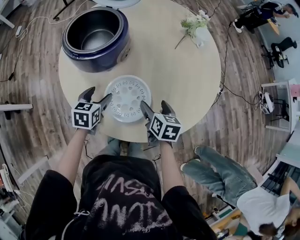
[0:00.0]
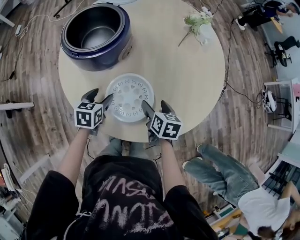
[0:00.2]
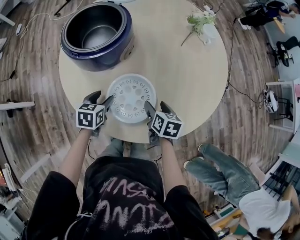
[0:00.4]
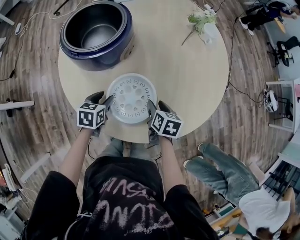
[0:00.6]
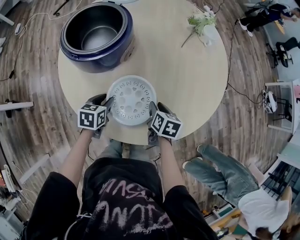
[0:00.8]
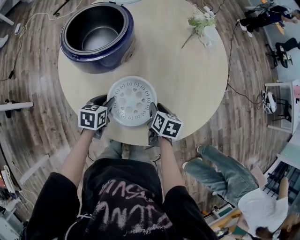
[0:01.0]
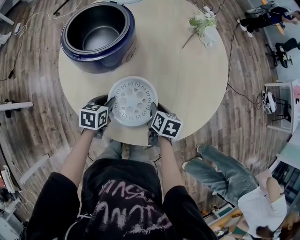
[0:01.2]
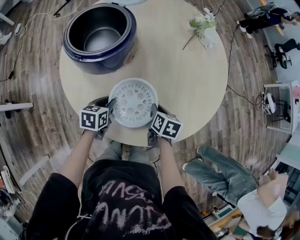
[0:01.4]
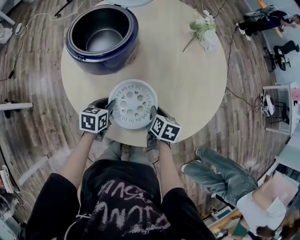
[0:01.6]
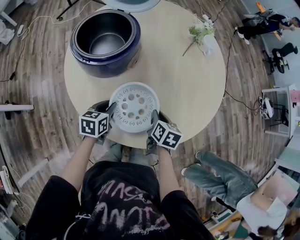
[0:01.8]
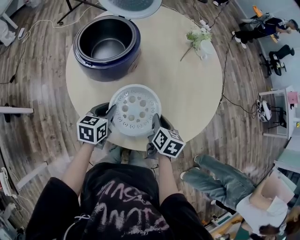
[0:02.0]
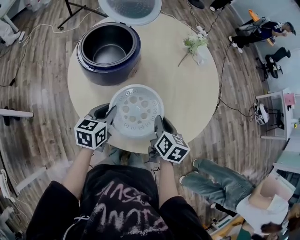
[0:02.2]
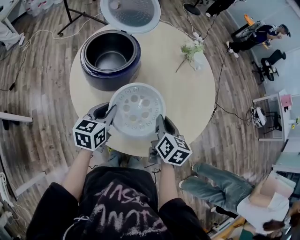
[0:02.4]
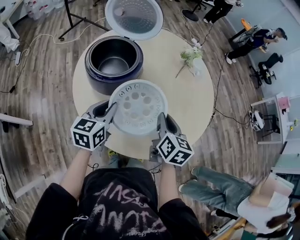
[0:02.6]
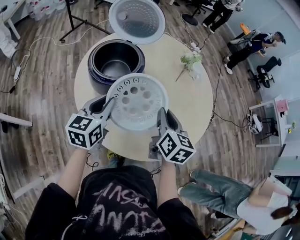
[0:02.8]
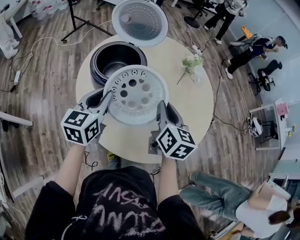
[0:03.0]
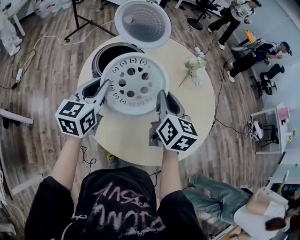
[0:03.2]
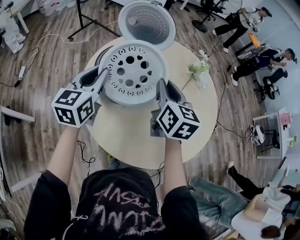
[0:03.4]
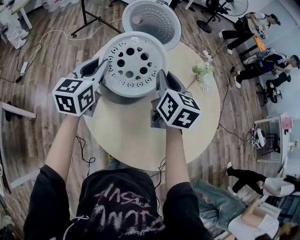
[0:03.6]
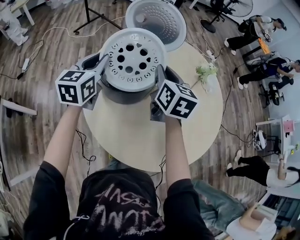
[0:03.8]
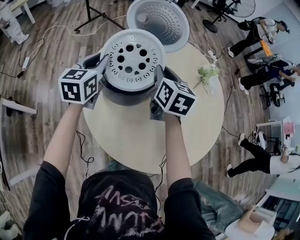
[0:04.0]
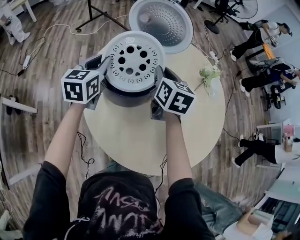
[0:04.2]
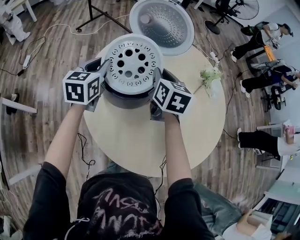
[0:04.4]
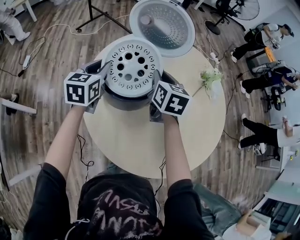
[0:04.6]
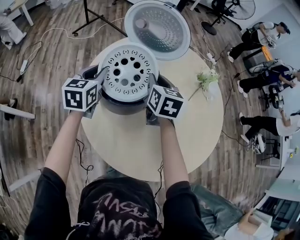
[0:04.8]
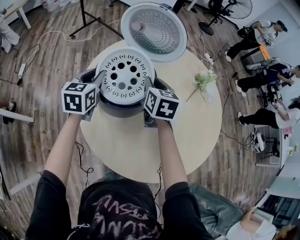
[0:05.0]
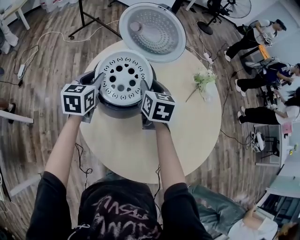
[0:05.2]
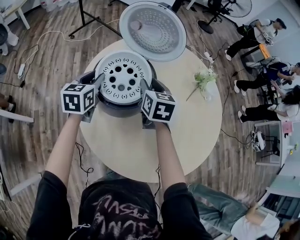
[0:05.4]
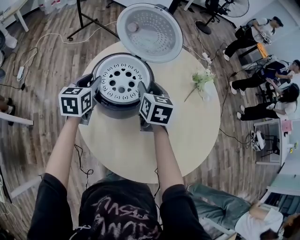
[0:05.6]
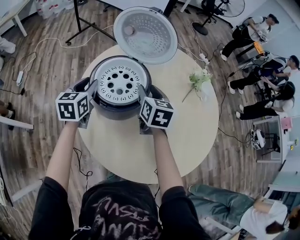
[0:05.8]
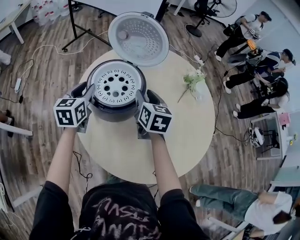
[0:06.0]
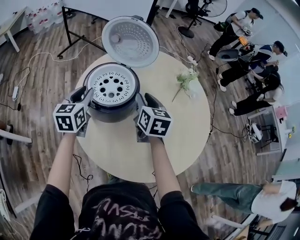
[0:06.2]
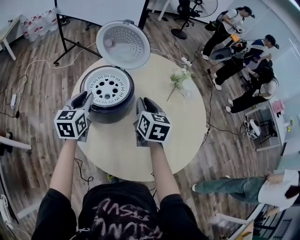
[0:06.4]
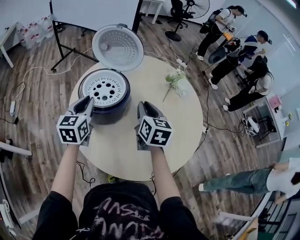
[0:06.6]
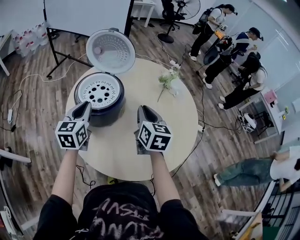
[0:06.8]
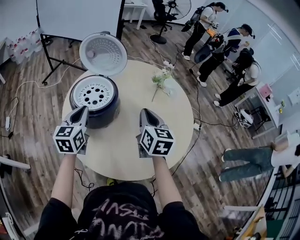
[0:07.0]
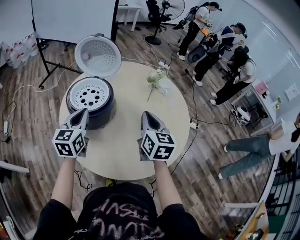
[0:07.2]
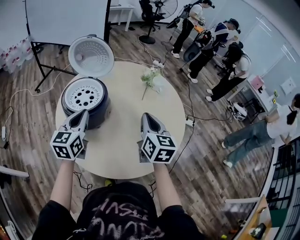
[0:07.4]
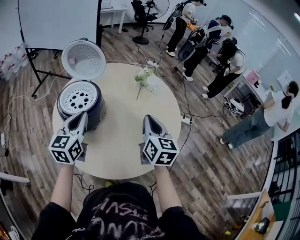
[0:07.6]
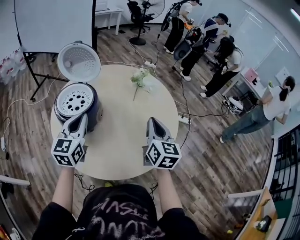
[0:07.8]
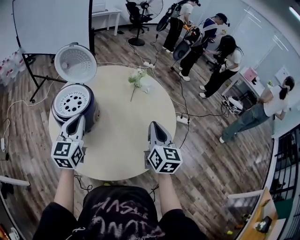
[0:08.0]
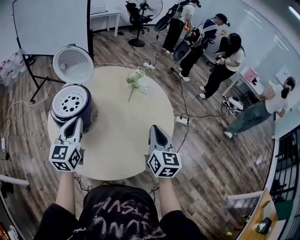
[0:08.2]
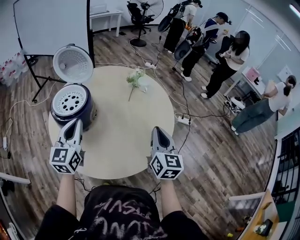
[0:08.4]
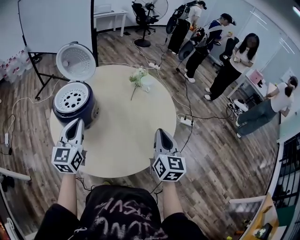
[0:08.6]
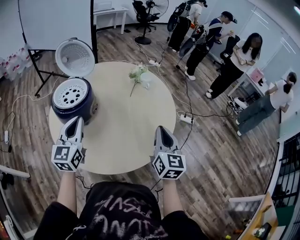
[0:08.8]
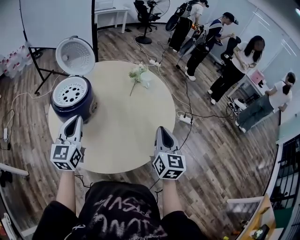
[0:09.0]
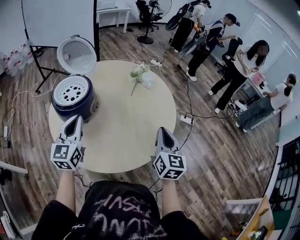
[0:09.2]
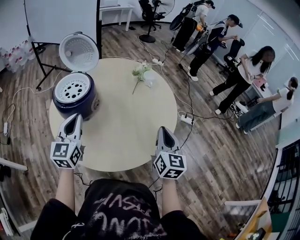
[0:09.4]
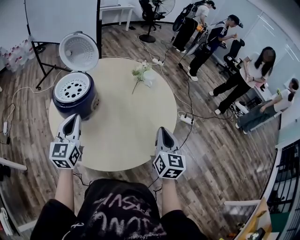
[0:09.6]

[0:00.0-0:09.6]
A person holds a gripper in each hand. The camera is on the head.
0:00.0 to 0:01.6: Both grippers travel together downward, some 5 cm. The right gripper closes its fingers; the left gripper closes up.
0:01.6 to 0:03.2: Both grippers move upward, roughly 30 cm. The left gripper points its fingers roughly 30 degrees further upward. The right gripper points its fingers roughly 40 degrees further upward.
0:03.2 to 0:04.8: Both grippers move forward, downward and to the left, about 20 cm.
0:04.8 to 0:06.4: The left gripper shifts roughly 5 cm backward. The right gripper travels backward and to the right by approximately 10 cm.
0:06.4 to 0:08.0: The right gripper moves to the right and backward, approximately 30 cm, and swivels about 30 degrees. Meanwhile the left gripper is displaced to the right, backward and upward by about 20 cm, and turns by approximately 20 degrees.
0:08.0 to 0:09.6: The right gripper moves to the right, some 5 cm. Meanwhile the left gripper shifts by about 5 cm.

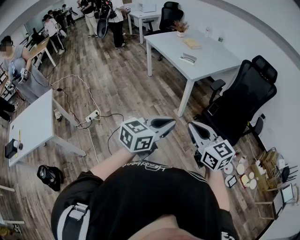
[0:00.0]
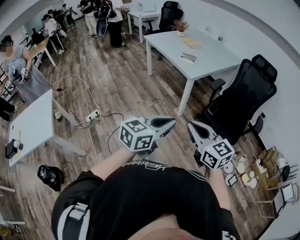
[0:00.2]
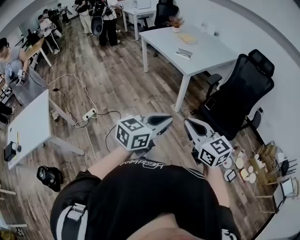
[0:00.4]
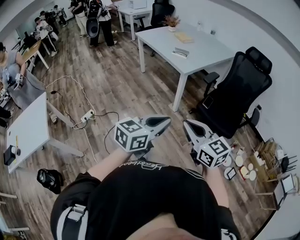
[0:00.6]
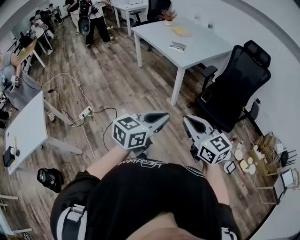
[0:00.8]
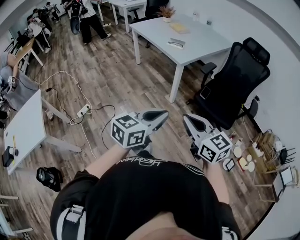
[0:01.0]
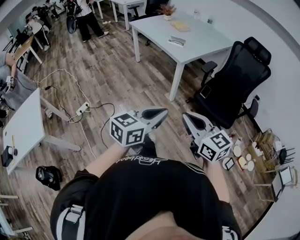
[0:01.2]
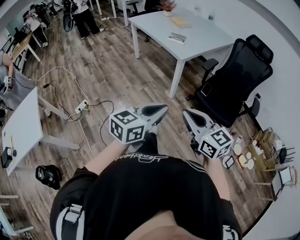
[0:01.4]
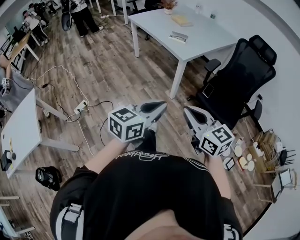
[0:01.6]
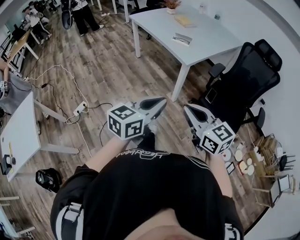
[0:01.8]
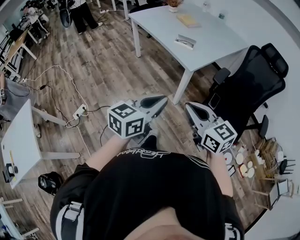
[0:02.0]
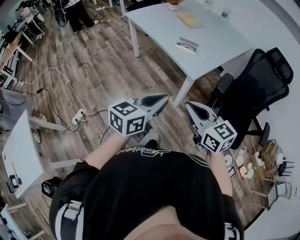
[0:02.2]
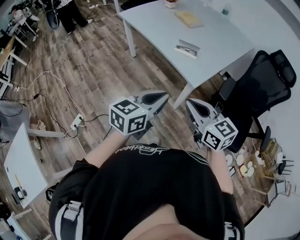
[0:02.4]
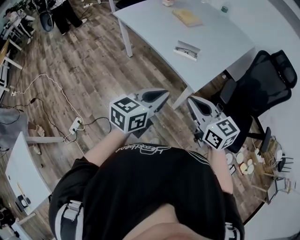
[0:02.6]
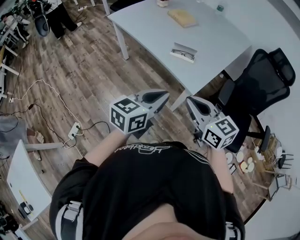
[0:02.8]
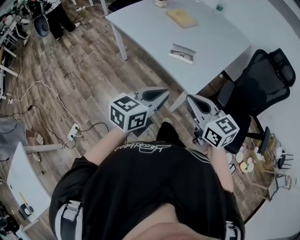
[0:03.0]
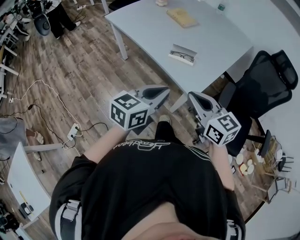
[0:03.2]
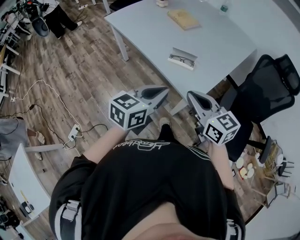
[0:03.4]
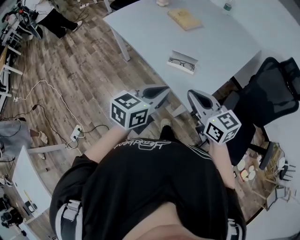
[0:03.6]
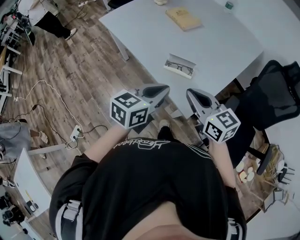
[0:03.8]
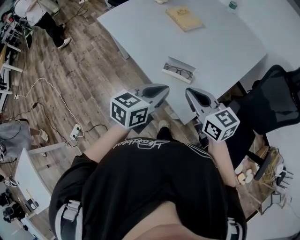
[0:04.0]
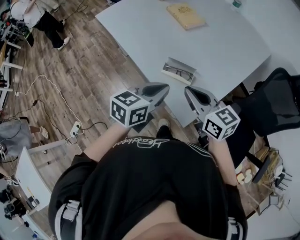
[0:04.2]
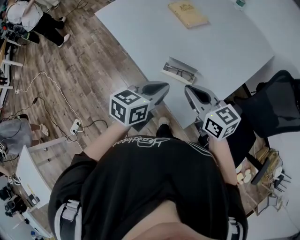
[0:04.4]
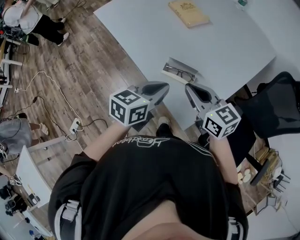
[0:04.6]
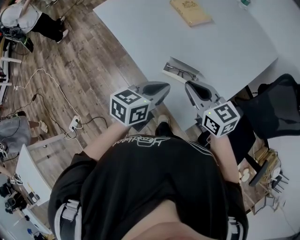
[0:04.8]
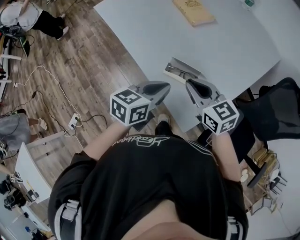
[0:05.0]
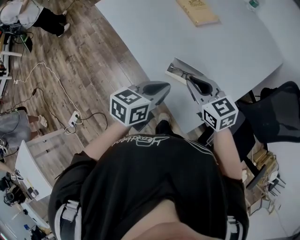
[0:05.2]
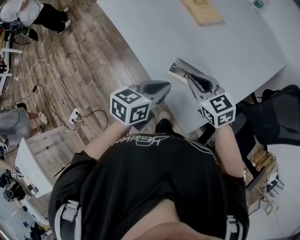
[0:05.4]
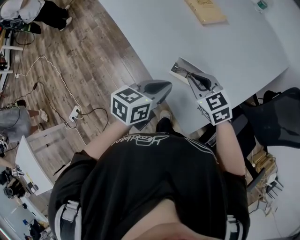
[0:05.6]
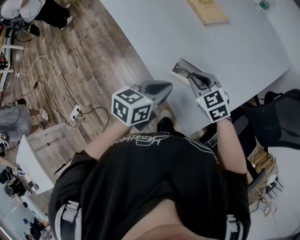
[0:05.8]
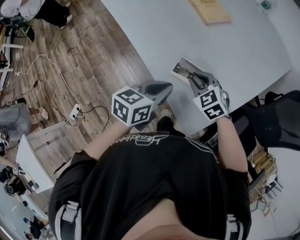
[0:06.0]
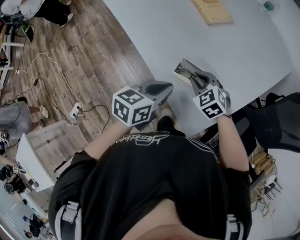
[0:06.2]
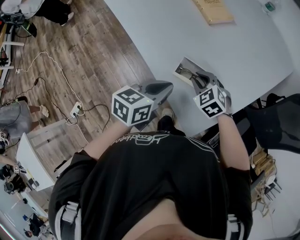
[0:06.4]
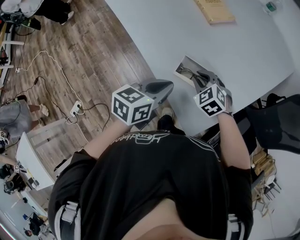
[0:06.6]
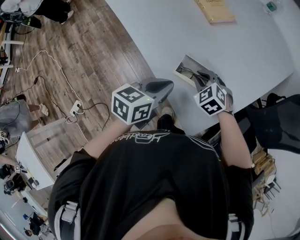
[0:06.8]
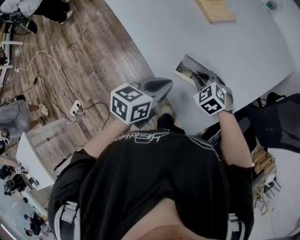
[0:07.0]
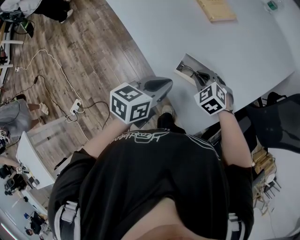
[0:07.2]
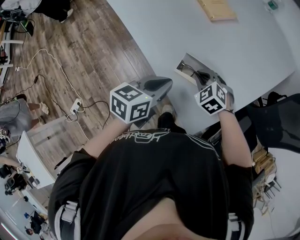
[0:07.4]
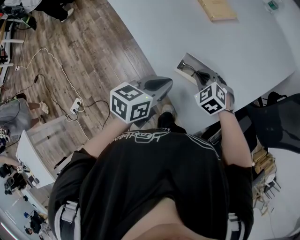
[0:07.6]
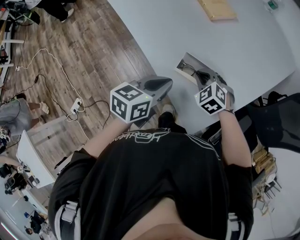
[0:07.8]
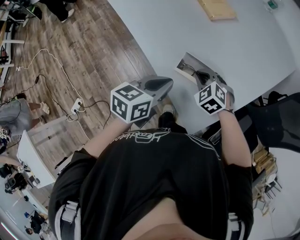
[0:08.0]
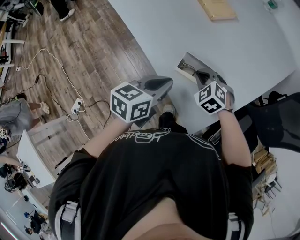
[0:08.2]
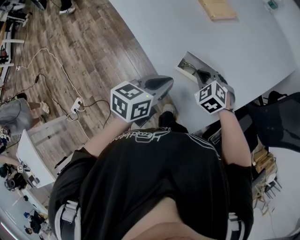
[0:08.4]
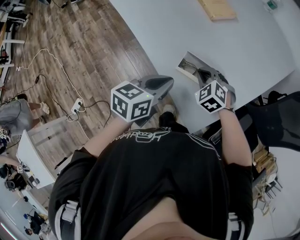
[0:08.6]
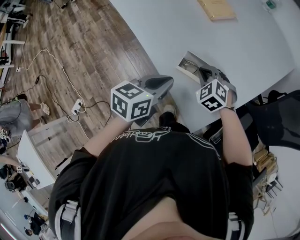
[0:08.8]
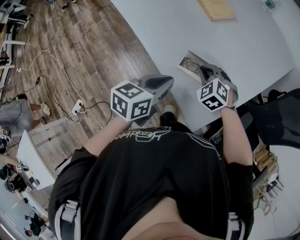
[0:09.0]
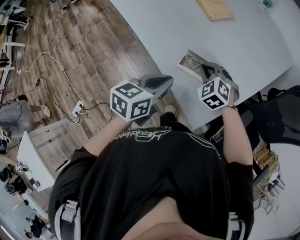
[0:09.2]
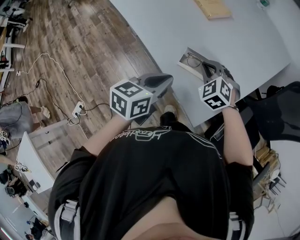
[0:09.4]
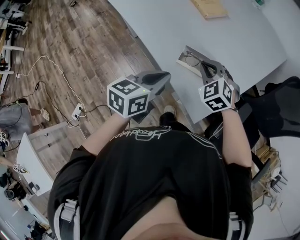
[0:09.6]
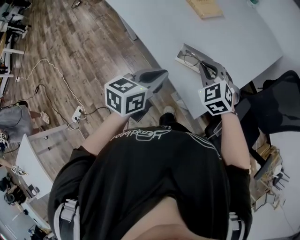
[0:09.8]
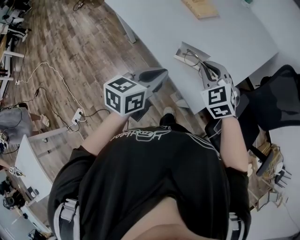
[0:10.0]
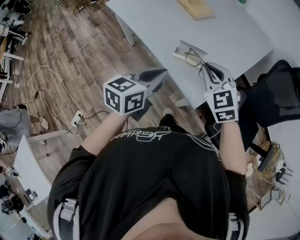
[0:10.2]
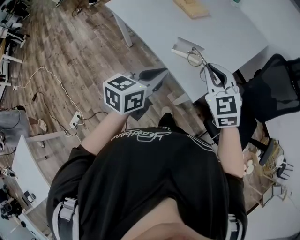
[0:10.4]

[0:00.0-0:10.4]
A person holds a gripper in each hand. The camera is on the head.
0:00.0 to 0:01.4: There are only small adjustments of the grippers.
0:01.4 to 0:03.0: Both grippers are carried forward, roughly 50 cm.
0:03.0 to 0:04.4: The two grippers go approximately 25 cm forward.
0:04.4 to 0:06.0: The left gripper is displaced downward by roughly 5 cm, while the right gripper shifts roughly 20 cm downward and forward, and tips its fingers downward by about 30 degrees.
0:06.0 to 0:07.4: The grippers move only a little.
0:07.4 to 0:09.0: The grippers stay close to where they were, moving slightly.
0:09.0 to 0:10.4: The left gripper shifts some 20 cm backward and upward; the right gripper heads upward and backward, covering roughly 30 cm, and changes its angle by approximately 40 degrees.

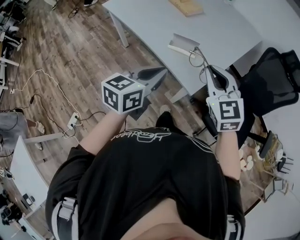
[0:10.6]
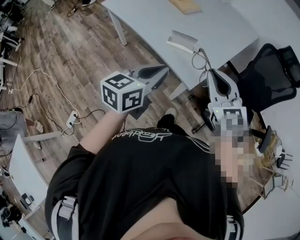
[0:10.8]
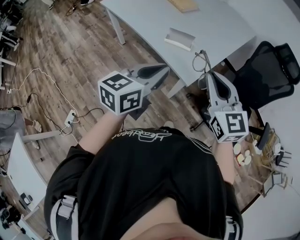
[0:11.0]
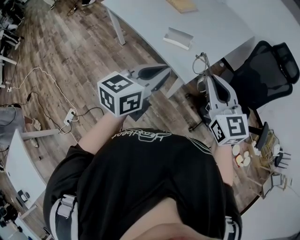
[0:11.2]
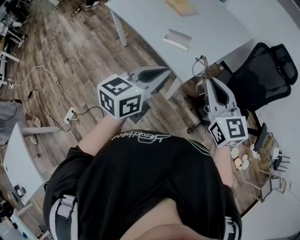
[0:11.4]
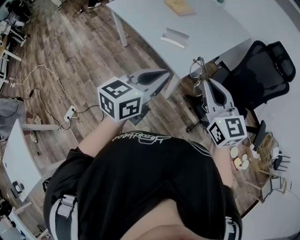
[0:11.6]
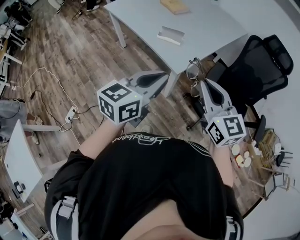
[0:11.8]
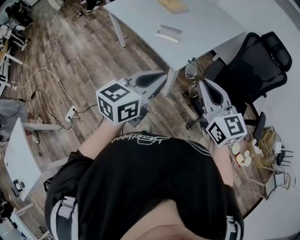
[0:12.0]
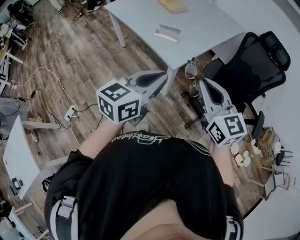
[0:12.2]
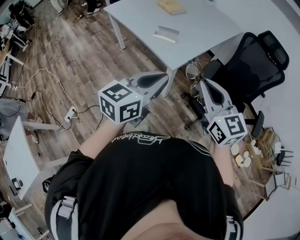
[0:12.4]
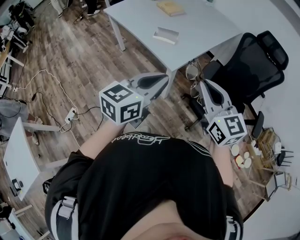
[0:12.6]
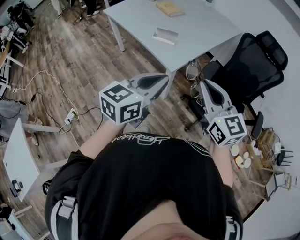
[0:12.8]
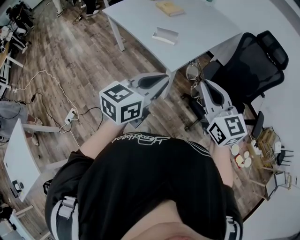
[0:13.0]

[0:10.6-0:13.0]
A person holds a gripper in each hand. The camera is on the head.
0:10.6 to 0:11.8: Both grippers move backward and to the right, about 20 cm. The right gripper swivels approximately 30 degrees.
0:11.8 to 0:13.0: The right gripper moves about 5 cm. Meanwhile the left gripper ends up approximately 5 cm from where it was.

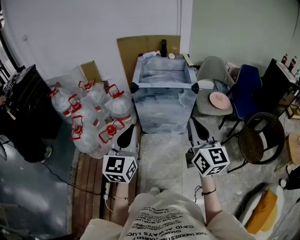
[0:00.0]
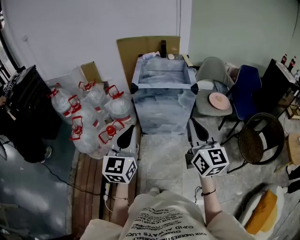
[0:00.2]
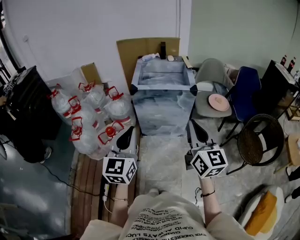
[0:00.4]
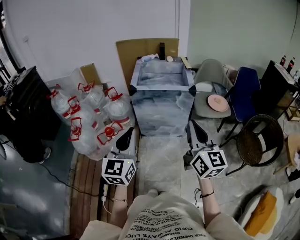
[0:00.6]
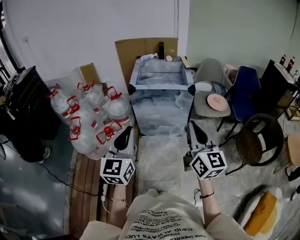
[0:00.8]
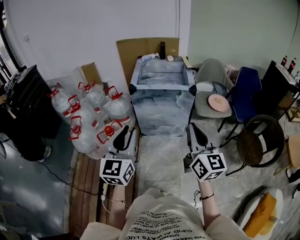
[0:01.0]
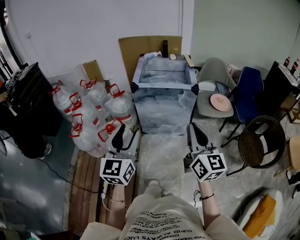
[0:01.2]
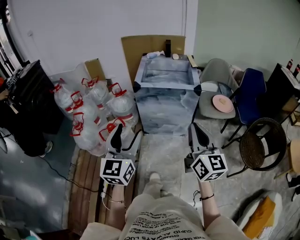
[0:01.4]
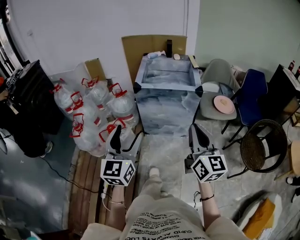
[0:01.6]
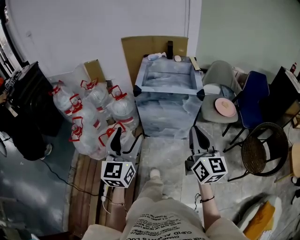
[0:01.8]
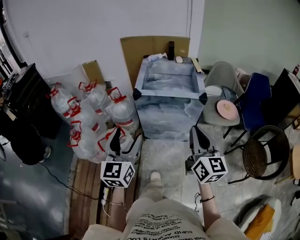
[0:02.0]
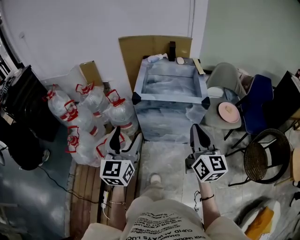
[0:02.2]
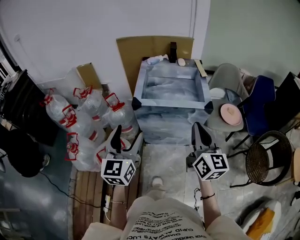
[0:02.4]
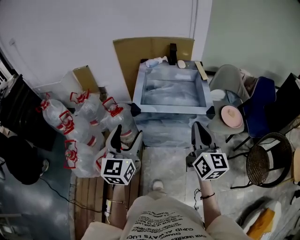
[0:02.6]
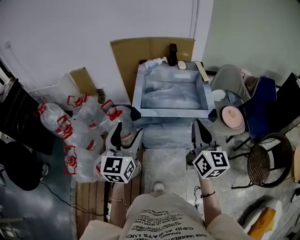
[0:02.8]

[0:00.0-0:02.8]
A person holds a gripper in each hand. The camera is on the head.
0:00.0 to 0:01.4: The left gripper opens.
0:01.4 to 0:02.8: Both grippers travel together forward, roughly 30 cm.
